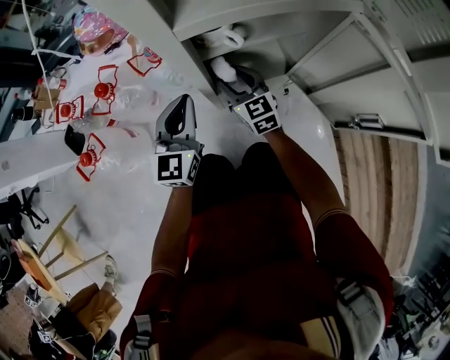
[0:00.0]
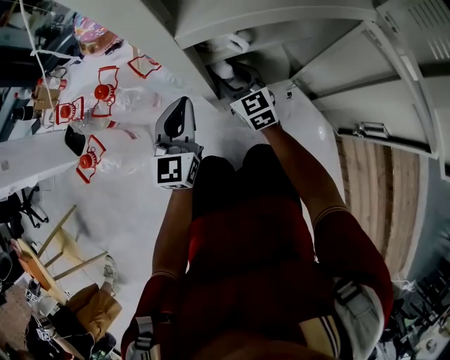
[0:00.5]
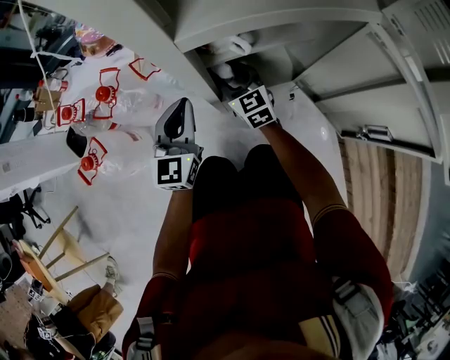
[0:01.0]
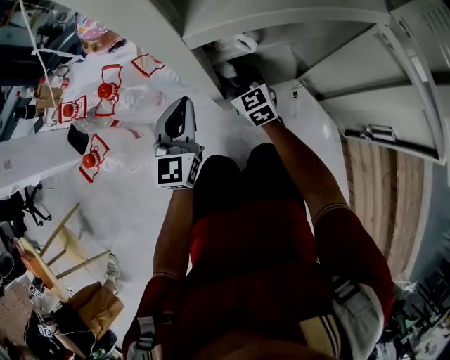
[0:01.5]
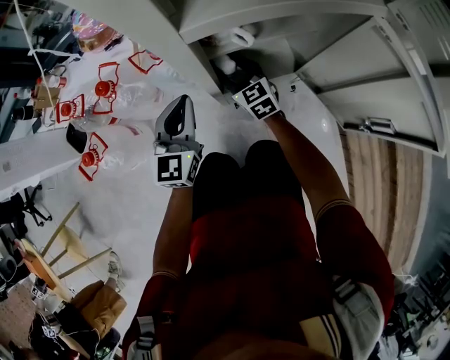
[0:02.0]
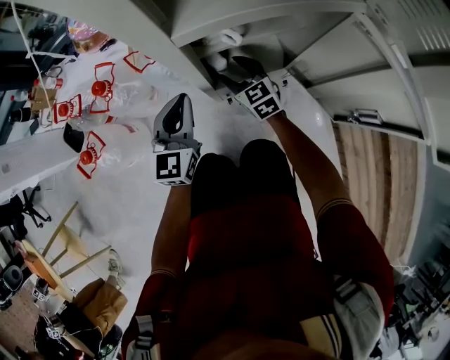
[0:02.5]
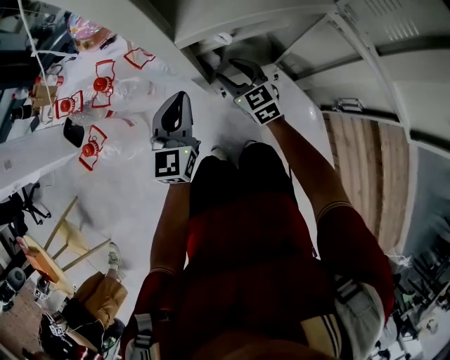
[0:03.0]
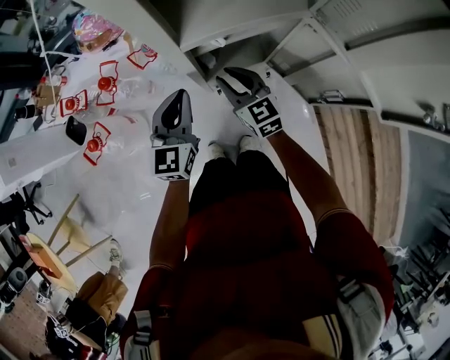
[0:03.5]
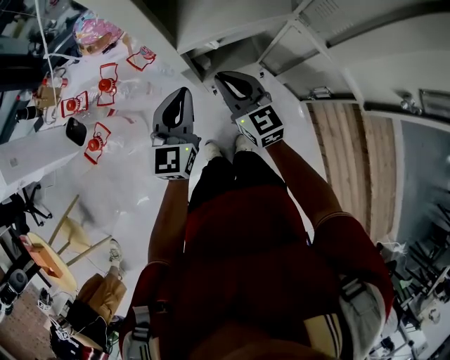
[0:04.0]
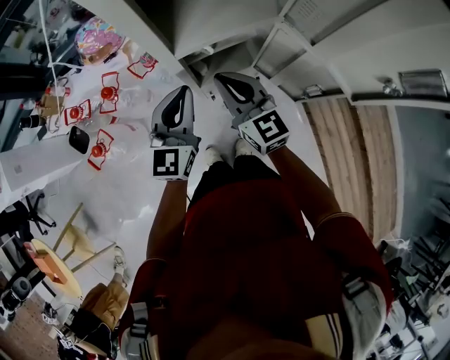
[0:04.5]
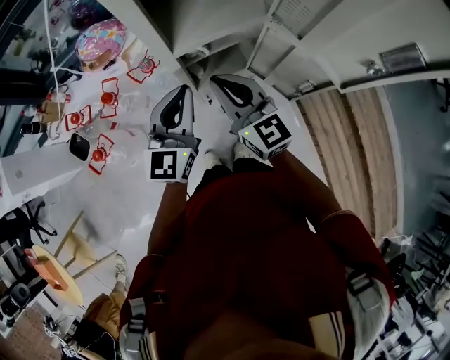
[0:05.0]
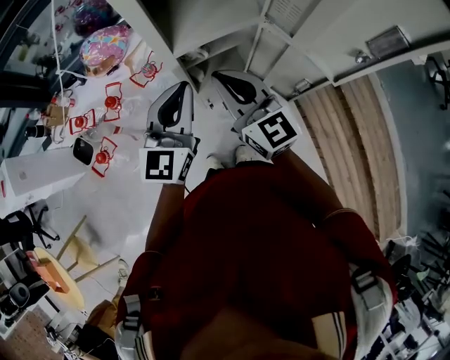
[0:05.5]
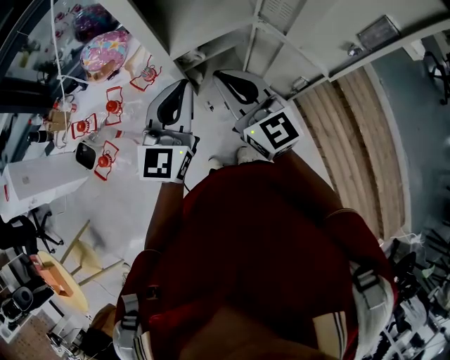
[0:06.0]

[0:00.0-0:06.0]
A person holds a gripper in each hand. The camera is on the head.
0.0 to 2.0 s: The right gripper travels downward by about 5 cm.
2.0 to 4.0 s: The left gripper goes approximately 20 cm upward, while the right gripper is displaced upward and backward by roughly 30 cm, and closes its fingers.
4.0 to 6.0 s: The left gripper shifts approximately 15 cm upward. The right gripper moves upward and backward, roughly 20 cm.

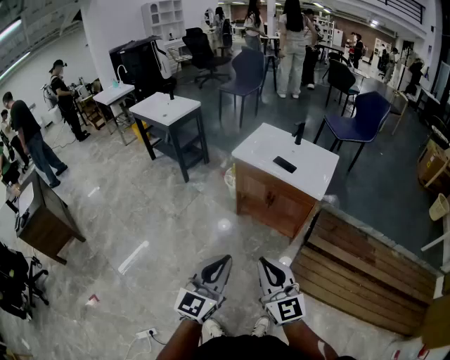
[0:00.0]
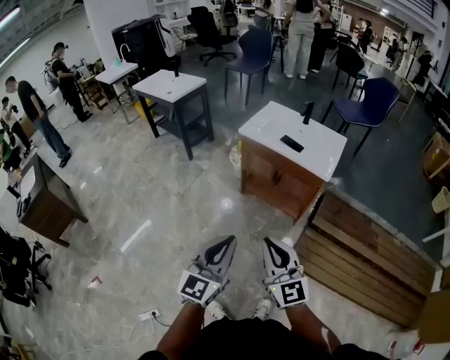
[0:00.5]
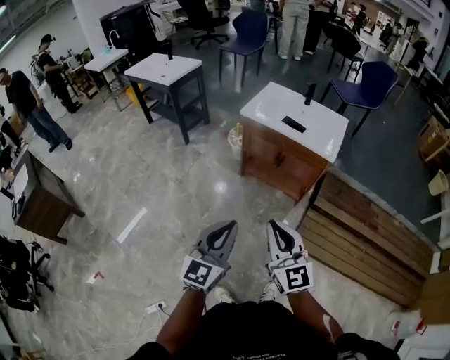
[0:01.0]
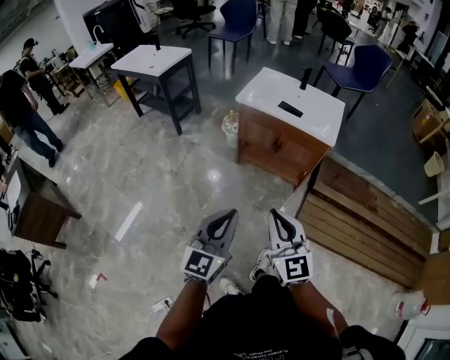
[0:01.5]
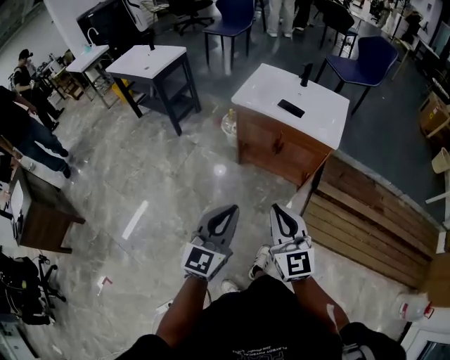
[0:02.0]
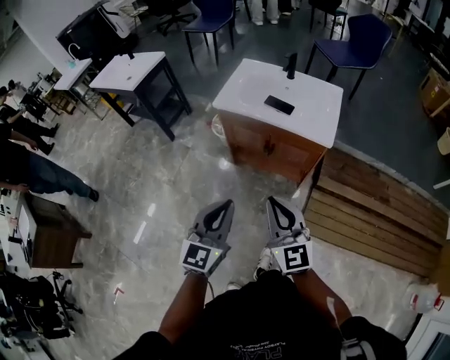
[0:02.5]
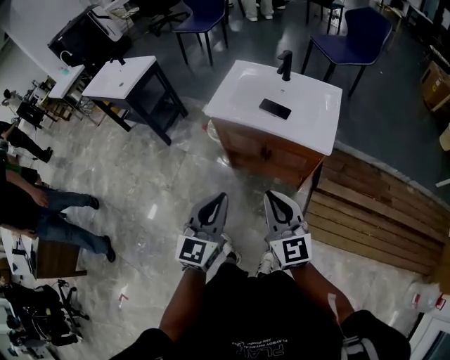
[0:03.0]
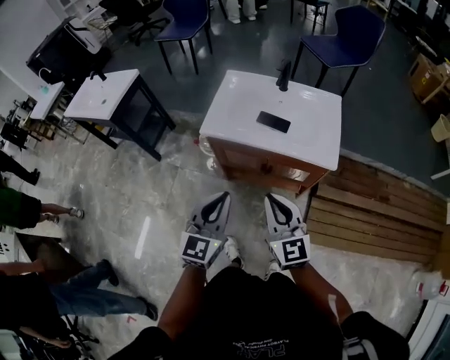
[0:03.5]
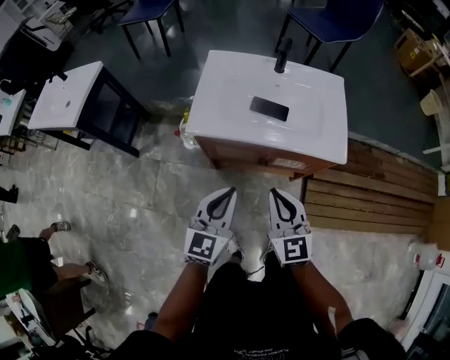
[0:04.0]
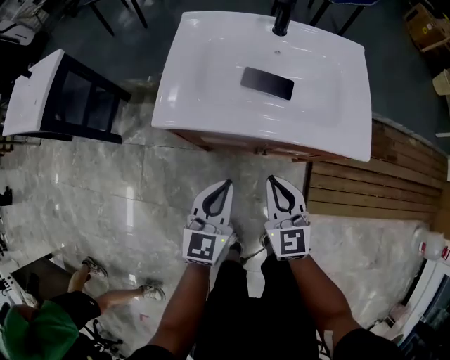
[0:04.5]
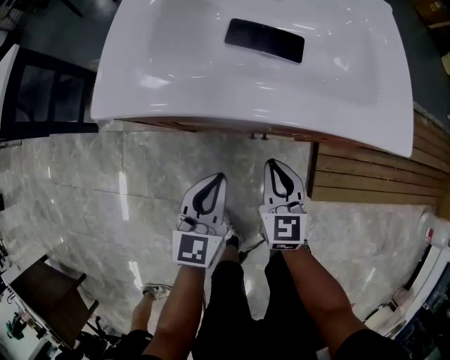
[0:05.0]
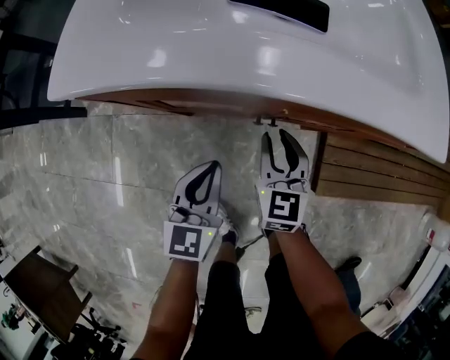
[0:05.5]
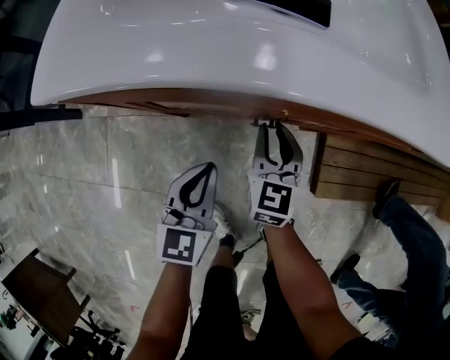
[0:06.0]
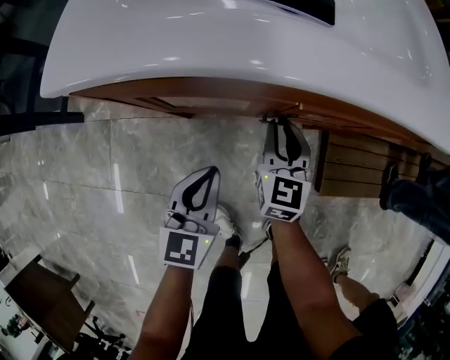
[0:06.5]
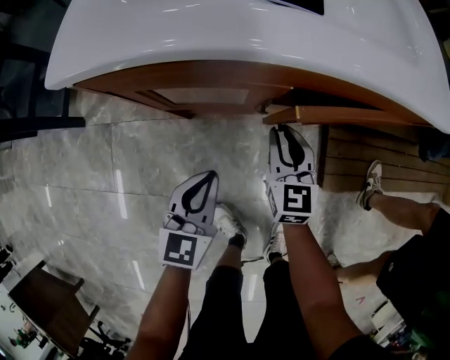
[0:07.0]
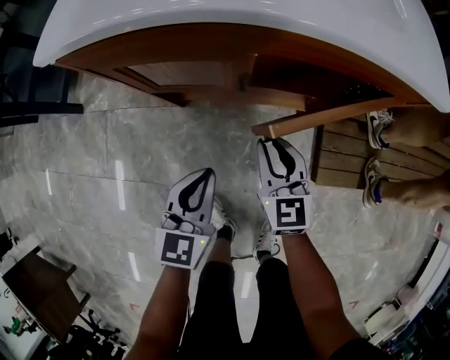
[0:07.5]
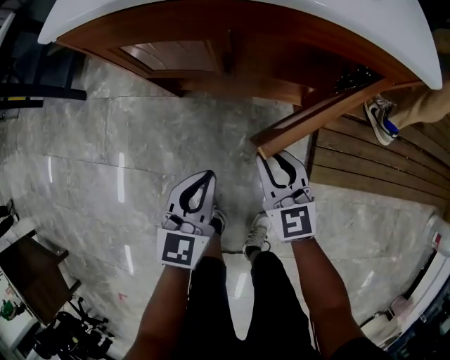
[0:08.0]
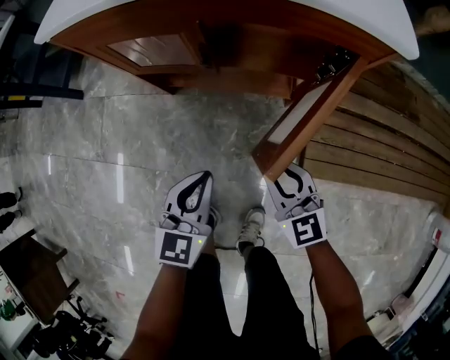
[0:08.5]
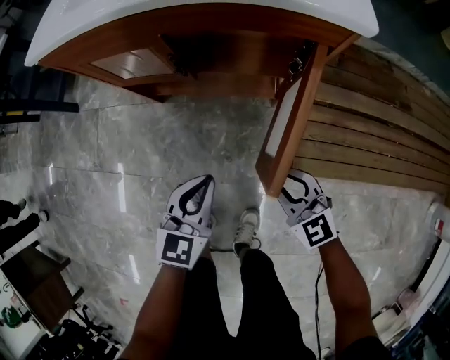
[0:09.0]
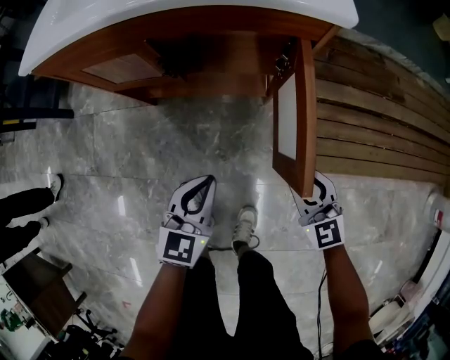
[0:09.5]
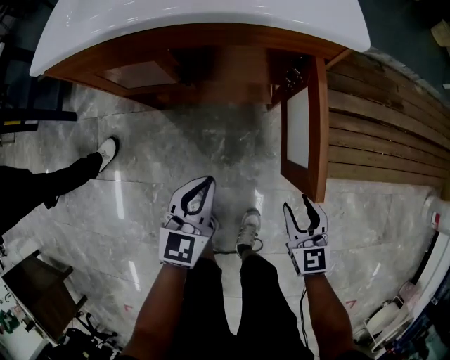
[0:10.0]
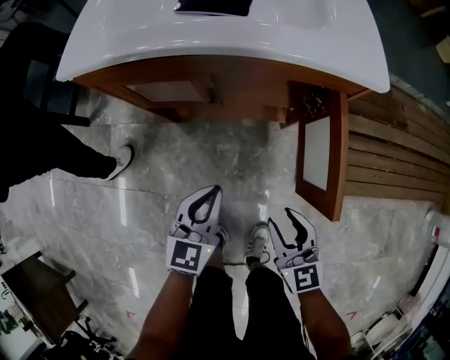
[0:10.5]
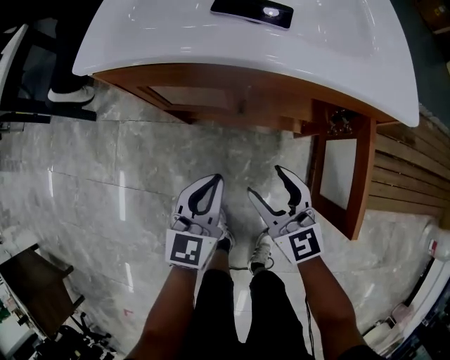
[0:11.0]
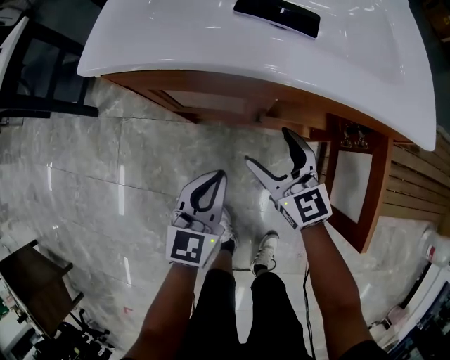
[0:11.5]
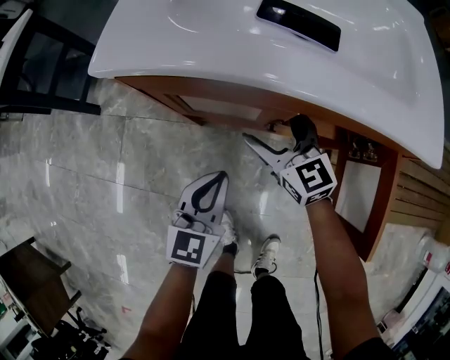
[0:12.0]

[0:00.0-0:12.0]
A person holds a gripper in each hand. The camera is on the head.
0.0 to 2.0 s: The grippers both shift forward and to the left by roughly 15 cm.
2.0 to 4.0 s: The two grippers go about 40 cm forward. The right gripper turns by roughly 20 degrees.
4.0 to 6.0 s: The left gripper is displaced downward by about 35 cm, while the right gripper shifts about 40 cm downward and forward, and changes its angle by some 30 degrees.
6.0 to 8.0 s: Both grippers move backward and to the right, approximately 15 cm. The right gripper changes its angle by roughly 30 degrees.
8.0 to 10.0 s: The right gripper is displaced to the right and backward by some 20 cm; the left gripper moves to the right, some 10 cm.
10.0 to 12.0 s: The left gripper heads to the left and forward, covering approximately 20 cm; the right gripper heads forward and to the left, covering roughly 40 cm, turns by some 30 degrees, and opens.

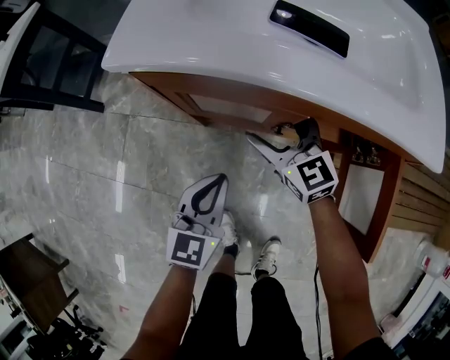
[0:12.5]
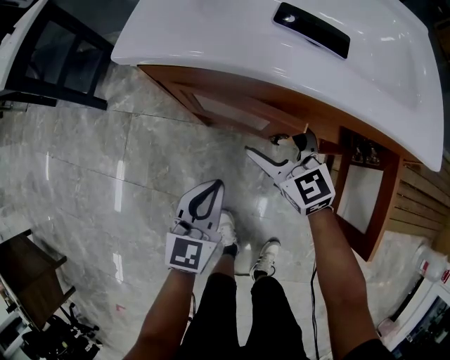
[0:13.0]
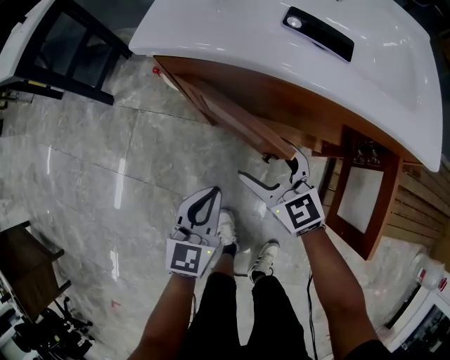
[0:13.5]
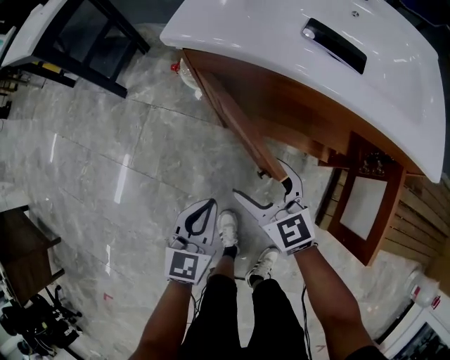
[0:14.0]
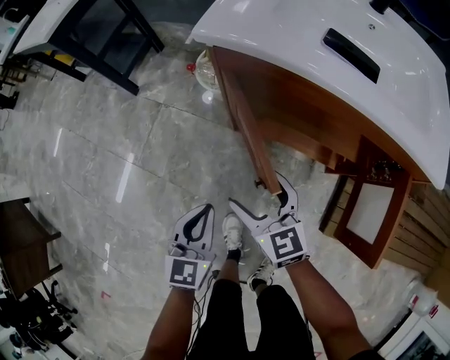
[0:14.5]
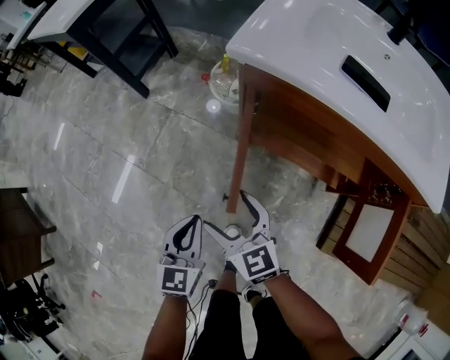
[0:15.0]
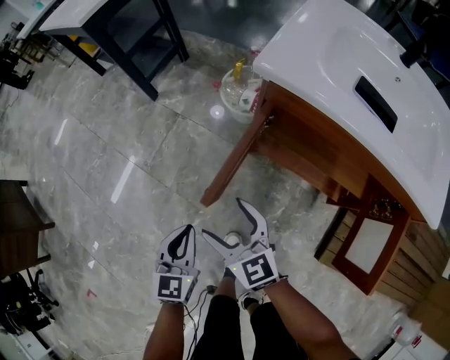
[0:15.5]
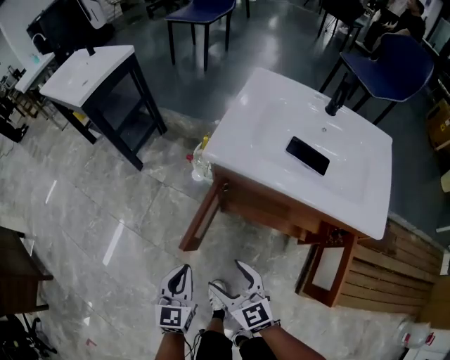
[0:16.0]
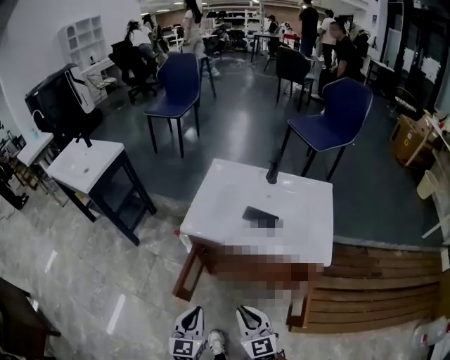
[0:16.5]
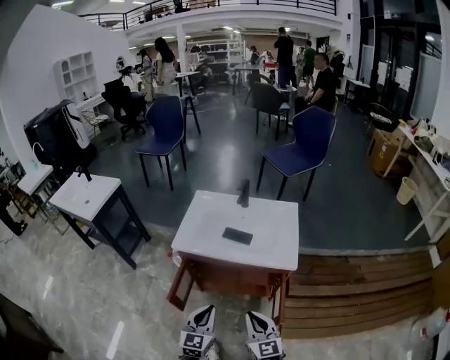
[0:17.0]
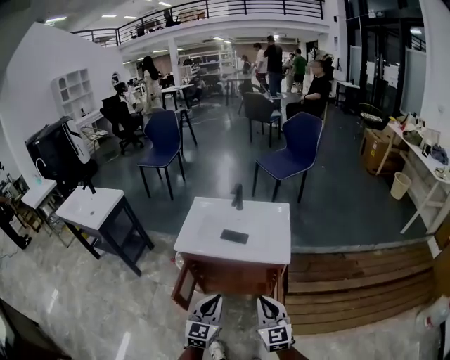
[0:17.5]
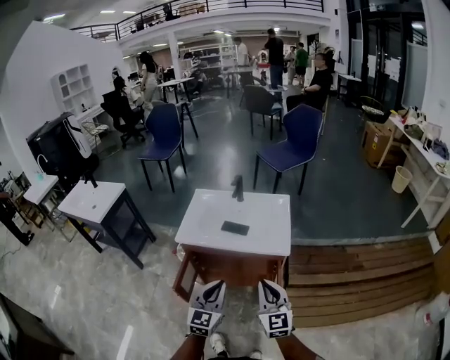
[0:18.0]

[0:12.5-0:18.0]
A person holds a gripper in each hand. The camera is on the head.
12.5 to 14.5 s: The right gripper is displaced backward and to the left by some 20 cm; the left gripper is displaced to the left and backward by some 15 cm.
14.5 to 16.0 s: The left gripper shifts roughly 10 cm upward. Meanwhile the right gripper moves upward and backward, approximately 10 cm, and travels to the left and back again, about 15 cm each way.
16.0 to 18.0 s: The grippers both shift upward by approximately 35 cm. The left gripper rotates about 30 degrees. The right gripper swivels some 40 degrees, and closes.

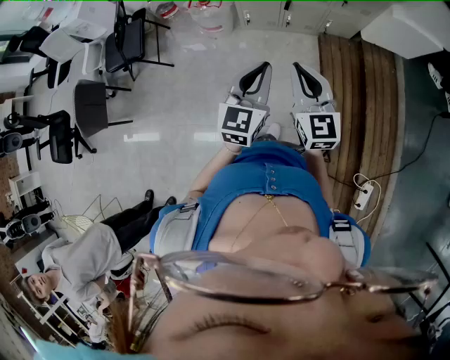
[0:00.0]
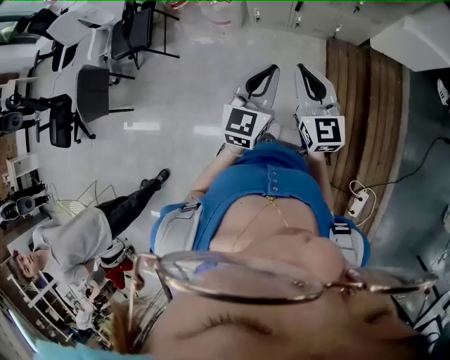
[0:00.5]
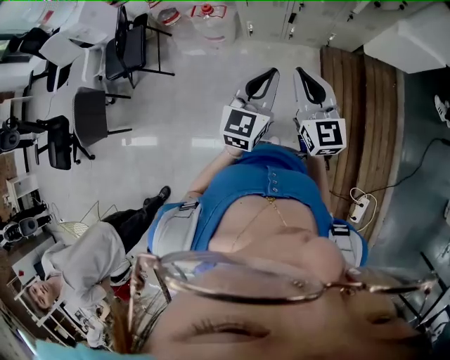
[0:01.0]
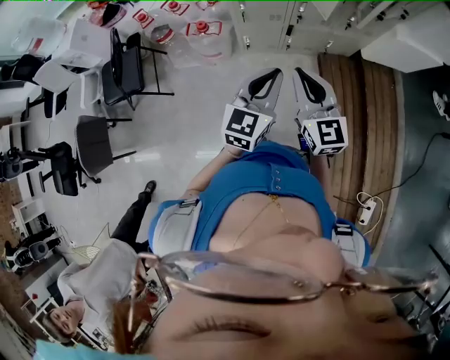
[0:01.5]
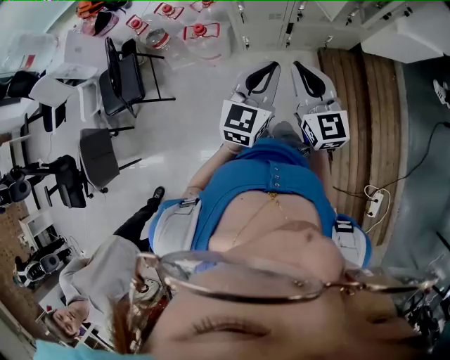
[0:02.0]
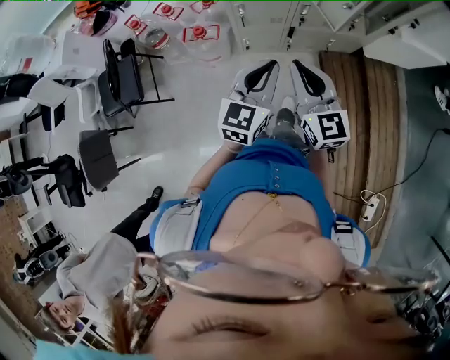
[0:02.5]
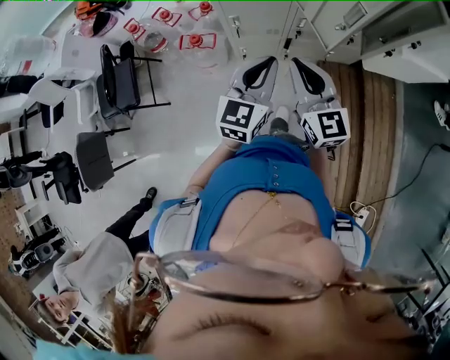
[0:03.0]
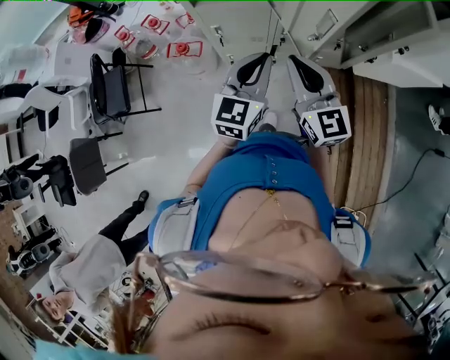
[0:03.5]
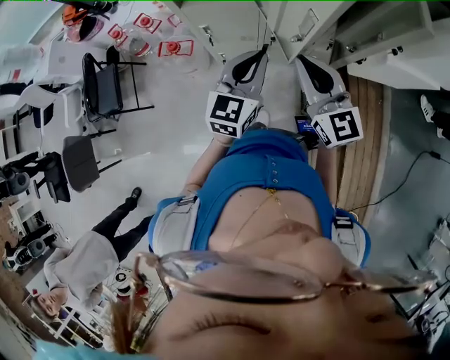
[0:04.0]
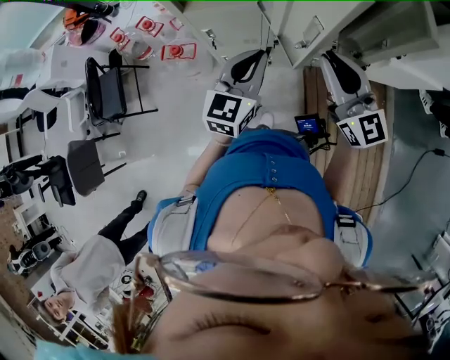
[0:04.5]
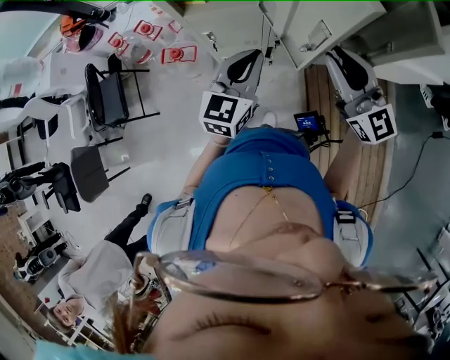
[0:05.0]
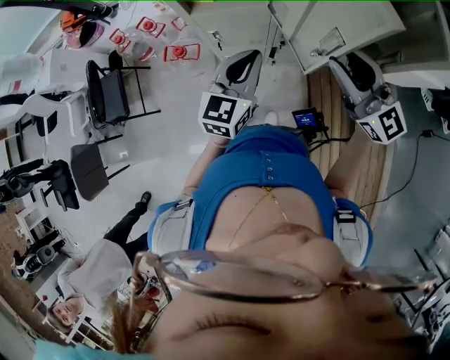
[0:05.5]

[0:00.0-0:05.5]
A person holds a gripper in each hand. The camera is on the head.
0.0 to 2.0 s: The two grippers go some 20 cm forward.
2.0 to 3.5 s: Both grippers travel together forward and to the right, approximately 20 cm.
3.5 to 5.5 s: The right gripper is displaced to the right and upward by some 10 cm, and opens. Meanwhile the left gripper travels forward by approximately 5 cm.
